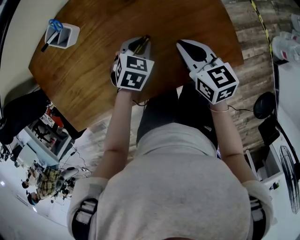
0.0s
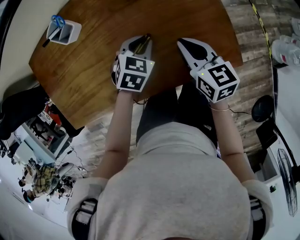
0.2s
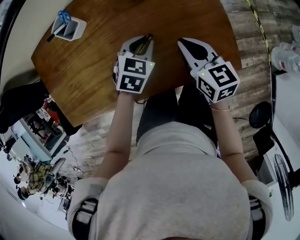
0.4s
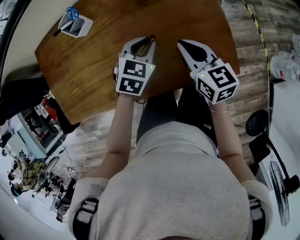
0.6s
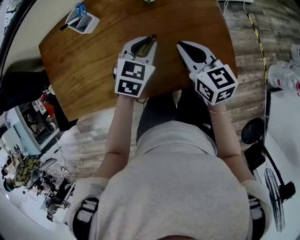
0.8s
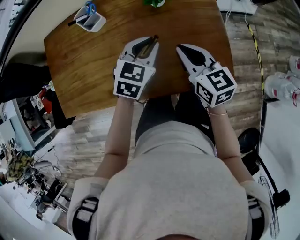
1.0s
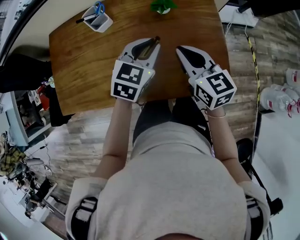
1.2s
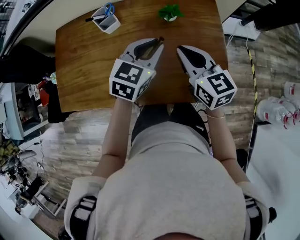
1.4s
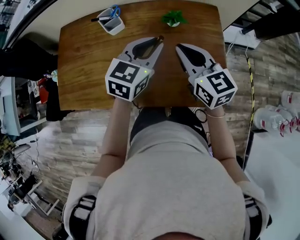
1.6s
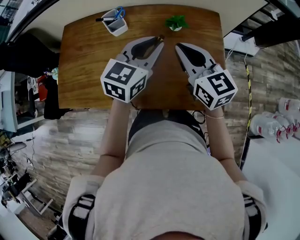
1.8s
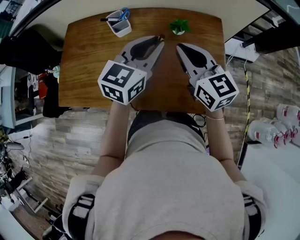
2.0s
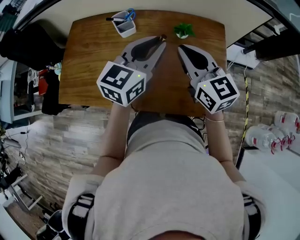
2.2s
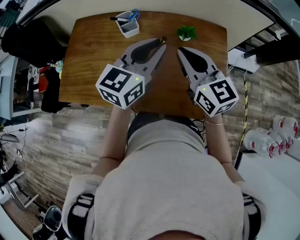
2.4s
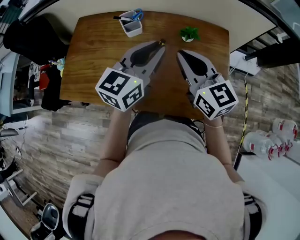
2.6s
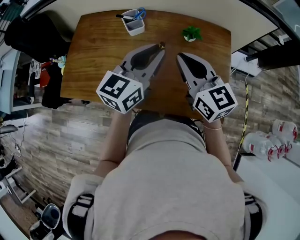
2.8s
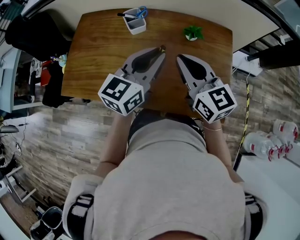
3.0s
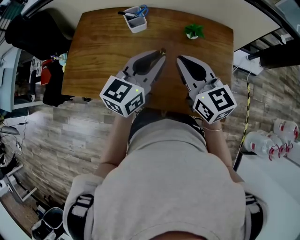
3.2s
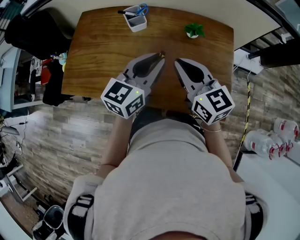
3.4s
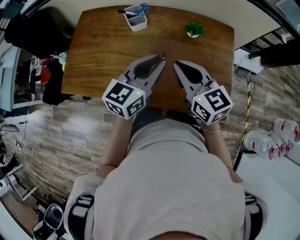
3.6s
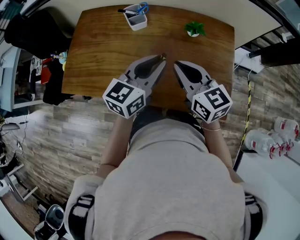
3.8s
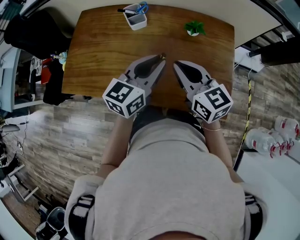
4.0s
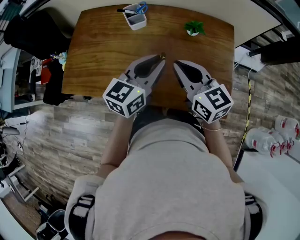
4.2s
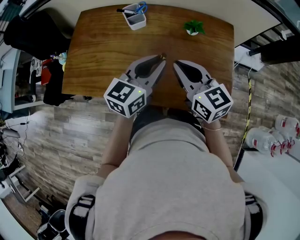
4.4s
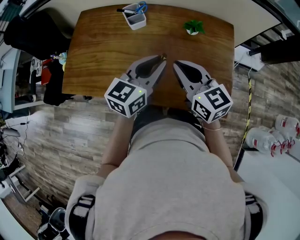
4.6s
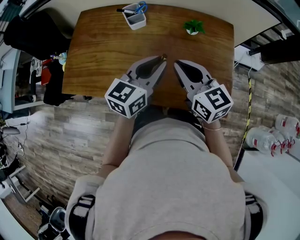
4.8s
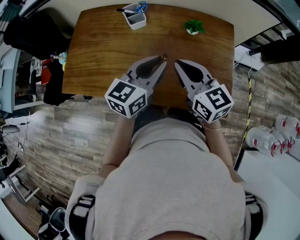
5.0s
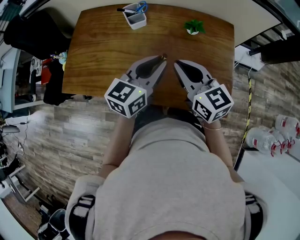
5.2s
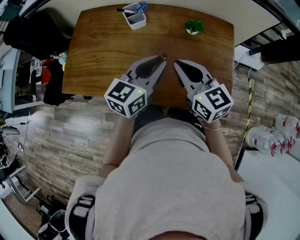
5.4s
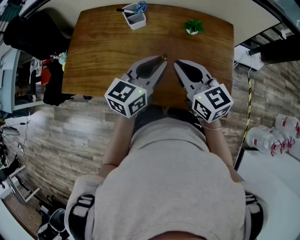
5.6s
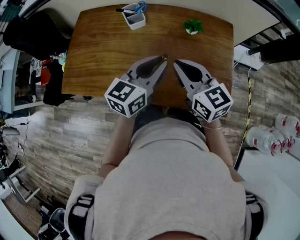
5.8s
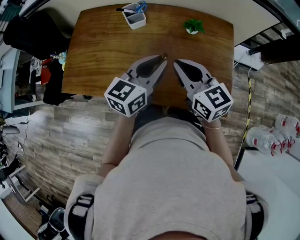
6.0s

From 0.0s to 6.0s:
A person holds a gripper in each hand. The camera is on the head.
From 0.0s to 1.6s: The left gripper is displaced upward by about 25 cm, and points its fingers about 40 degrees further upward; the right gripper moves upward and to the left, approximately 20 cm, and turns by roughly 30 degrees.
From 1.6s to 3.0s: The right gripper heads to the left, covering some 5 cm, while the left gripper shifts roughly 10 cm to the left and upward, and turns by about 20 degrees.
From 3.0s to 4.4s: The left gripper shifts by some 5 cm.
From 4.4s to 6.0s: Neither gripper changes place.

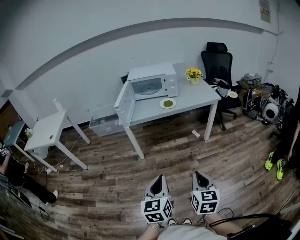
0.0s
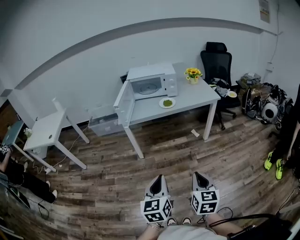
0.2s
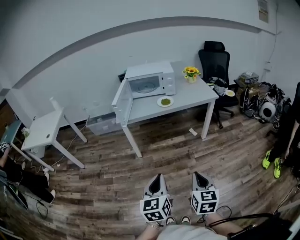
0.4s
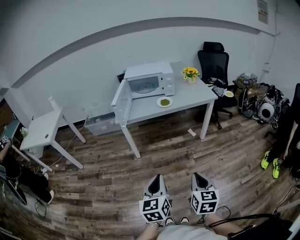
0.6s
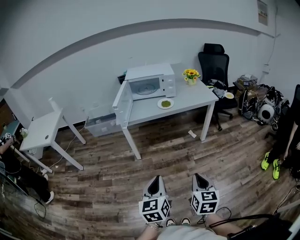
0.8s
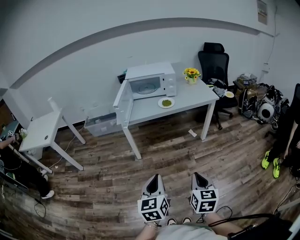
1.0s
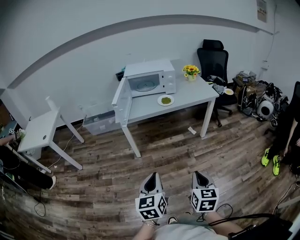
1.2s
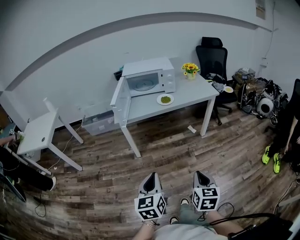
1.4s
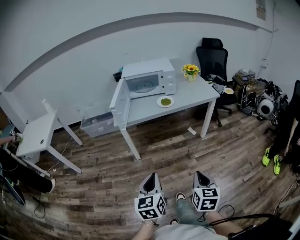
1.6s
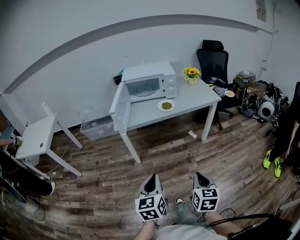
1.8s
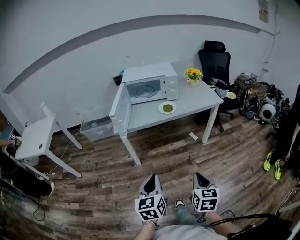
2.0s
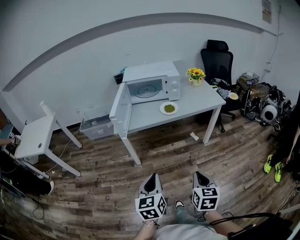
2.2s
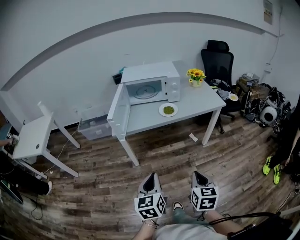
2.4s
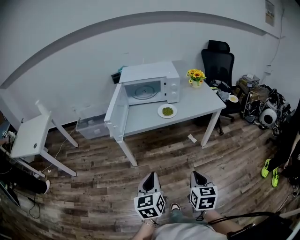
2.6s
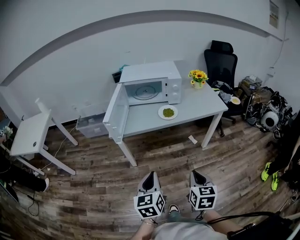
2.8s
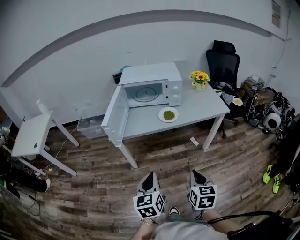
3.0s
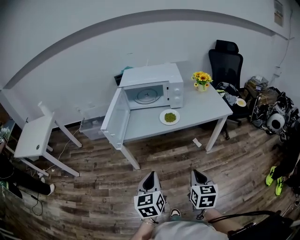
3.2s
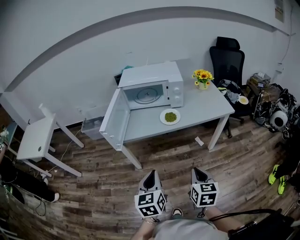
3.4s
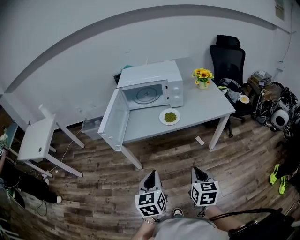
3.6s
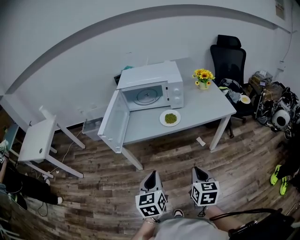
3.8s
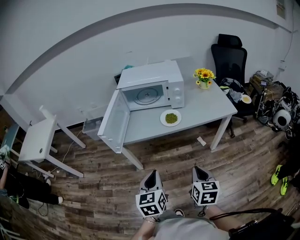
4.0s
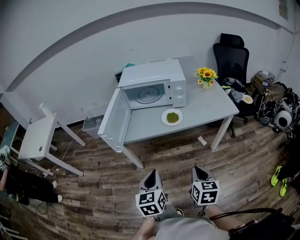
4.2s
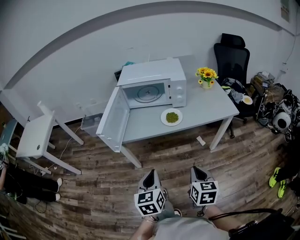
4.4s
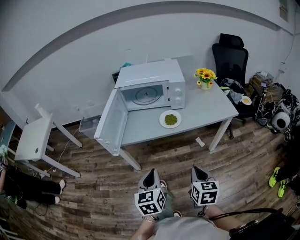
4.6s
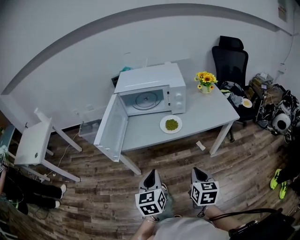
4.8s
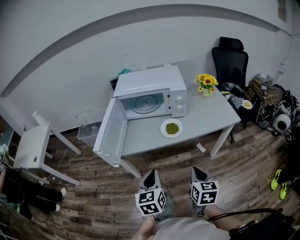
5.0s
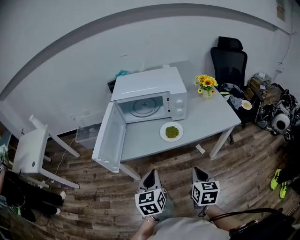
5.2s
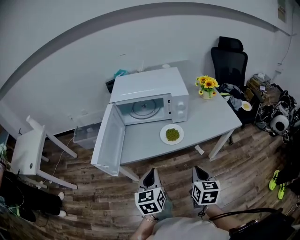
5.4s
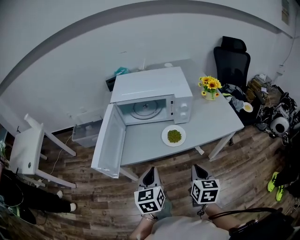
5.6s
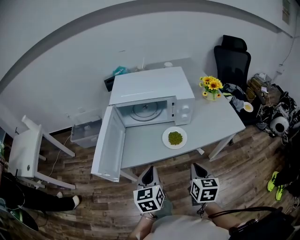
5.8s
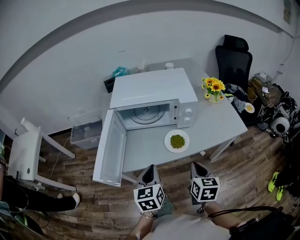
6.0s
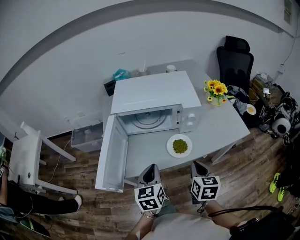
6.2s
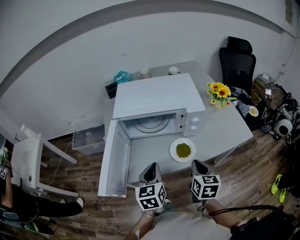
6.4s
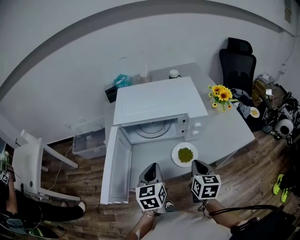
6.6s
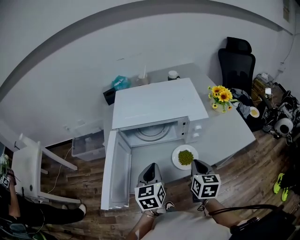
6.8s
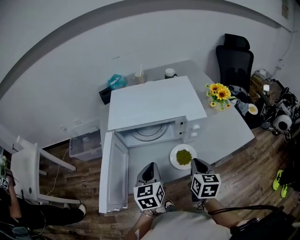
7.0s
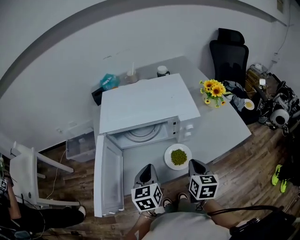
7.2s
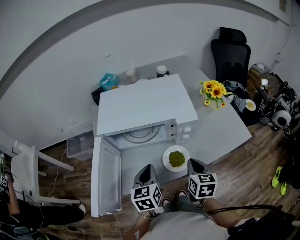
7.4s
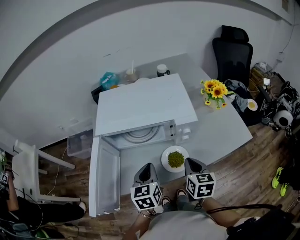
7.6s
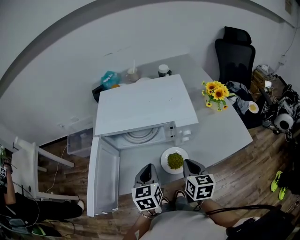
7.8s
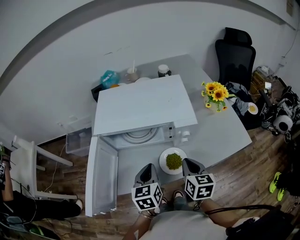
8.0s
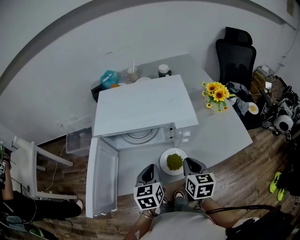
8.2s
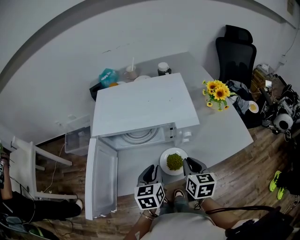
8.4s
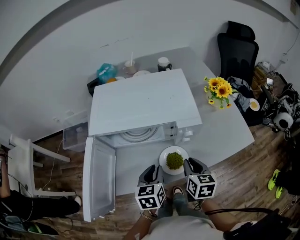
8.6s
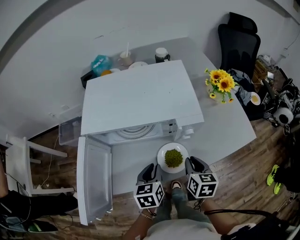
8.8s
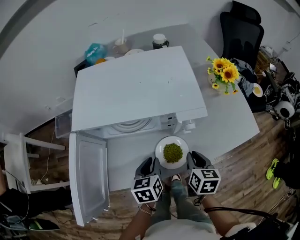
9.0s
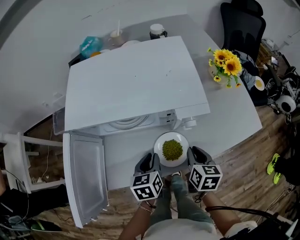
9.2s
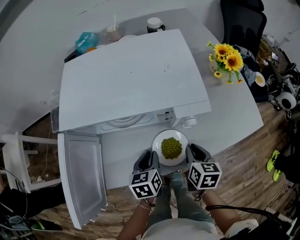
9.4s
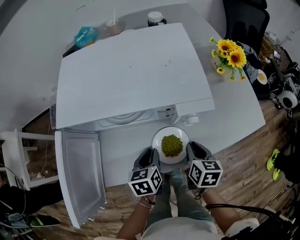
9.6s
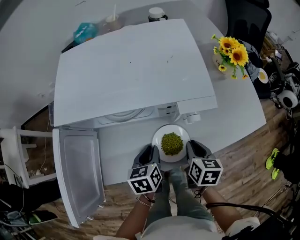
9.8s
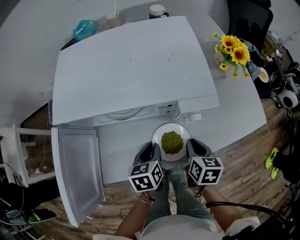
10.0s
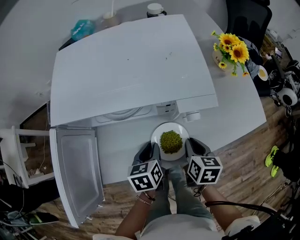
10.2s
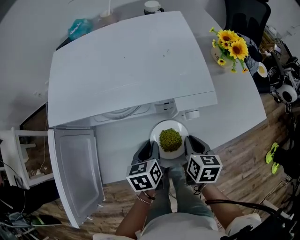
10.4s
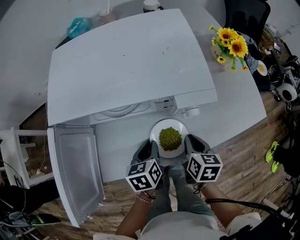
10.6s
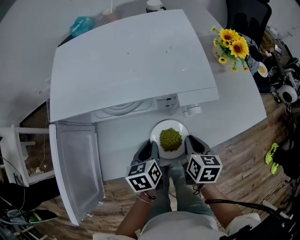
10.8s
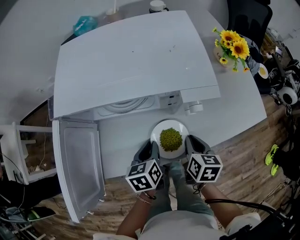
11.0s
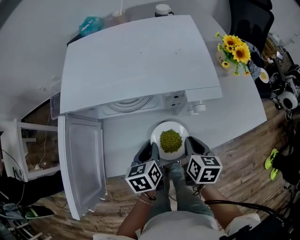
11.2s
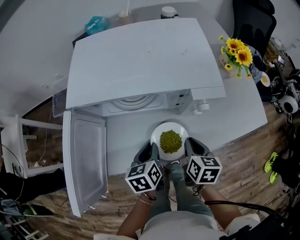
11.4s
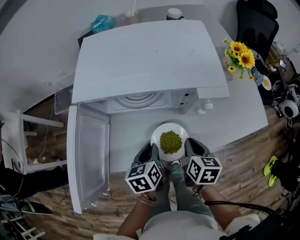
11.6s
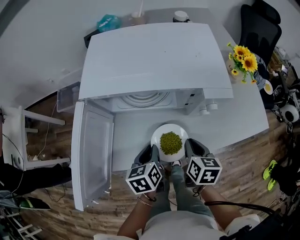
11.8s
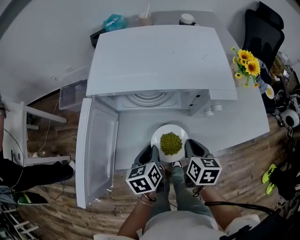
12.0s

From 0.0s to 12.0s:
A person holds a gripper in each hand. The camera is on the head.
From 0.0s to 1.6s: The left gripper moves to the left and forward, roughly 10 cm, while the right gripper travels forward by some 5 cm.
From 1.6s to 3.0s: The grippers both shift forward by some 20 cm.
From 3.0s to 4.4s: Both grippers travel together forward, roughly 10 cm.
From 4.4s to 6.0s: Both grippers move forward, roughly 20 cm.
From 6.0s to 7.6s: Both grippers move forward, some 15 cm.
From 7.6s to 9.0s: The two grippers go approximately 10 cm downward.
From 9.0s to 10.4s: Both grippers move downward, some 5 cm.
From 10.4s to 12.0s: The right gripper goes about 10 cm to the left, while the left gripper travels to the left and backward by roughly 10 cm.

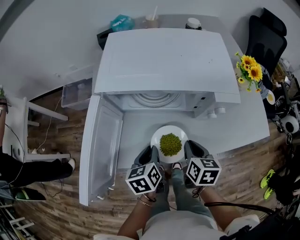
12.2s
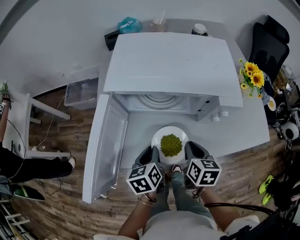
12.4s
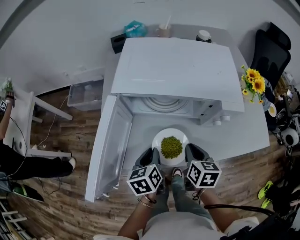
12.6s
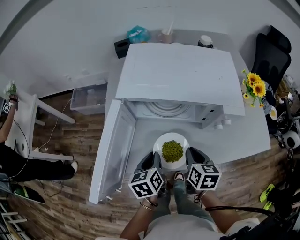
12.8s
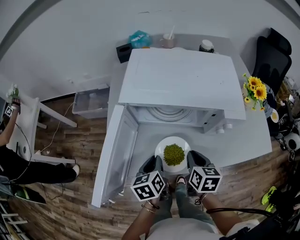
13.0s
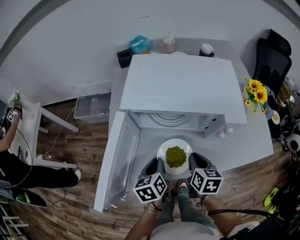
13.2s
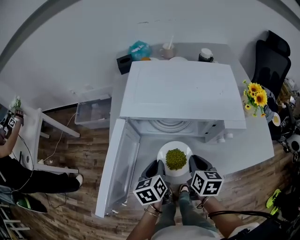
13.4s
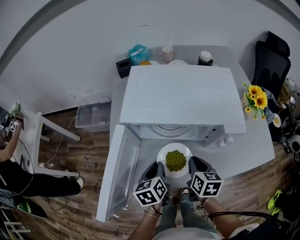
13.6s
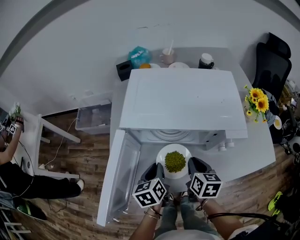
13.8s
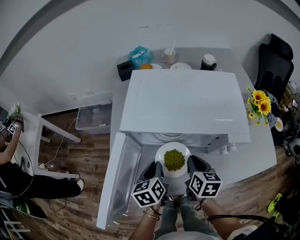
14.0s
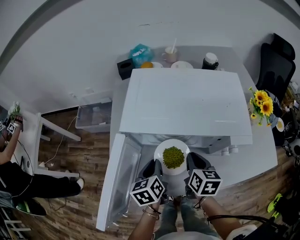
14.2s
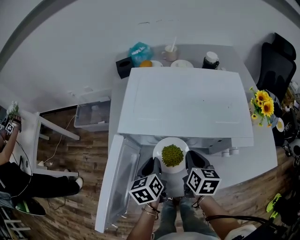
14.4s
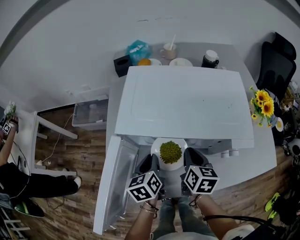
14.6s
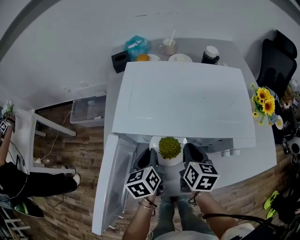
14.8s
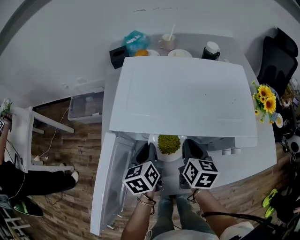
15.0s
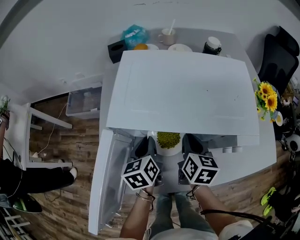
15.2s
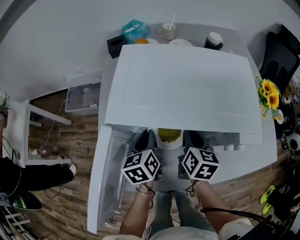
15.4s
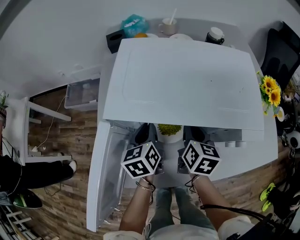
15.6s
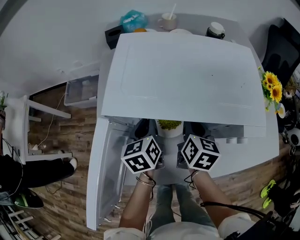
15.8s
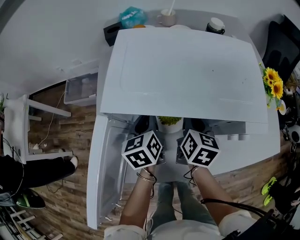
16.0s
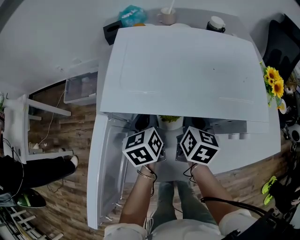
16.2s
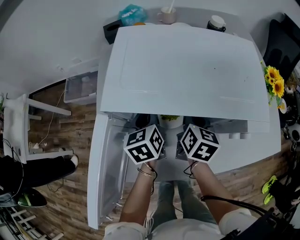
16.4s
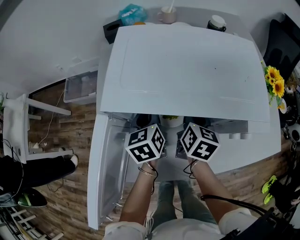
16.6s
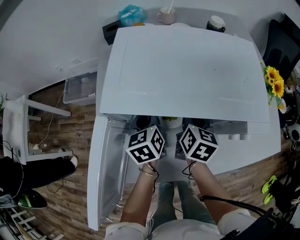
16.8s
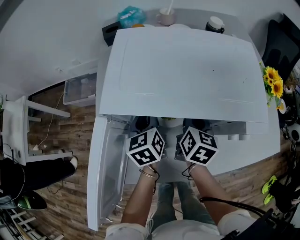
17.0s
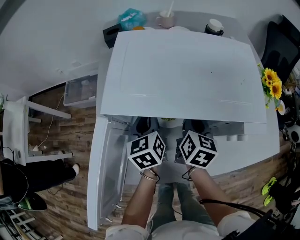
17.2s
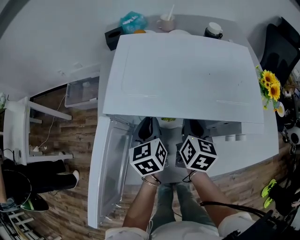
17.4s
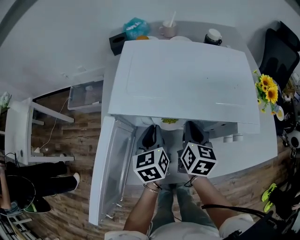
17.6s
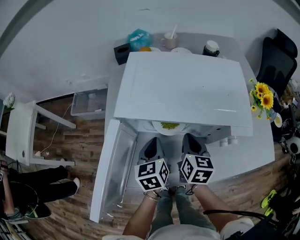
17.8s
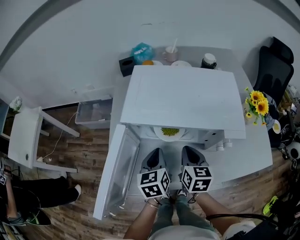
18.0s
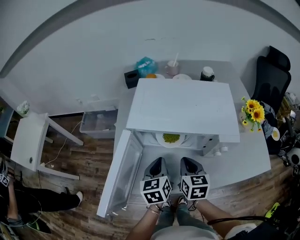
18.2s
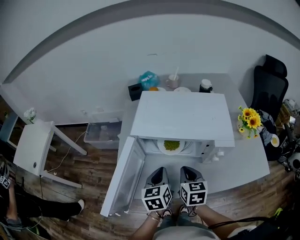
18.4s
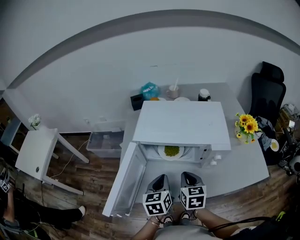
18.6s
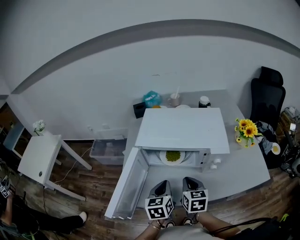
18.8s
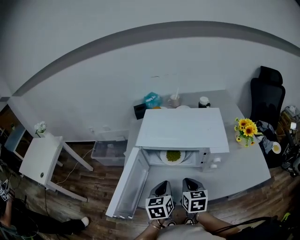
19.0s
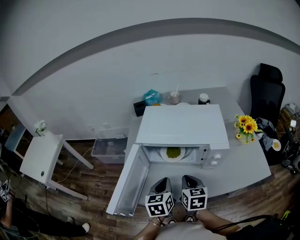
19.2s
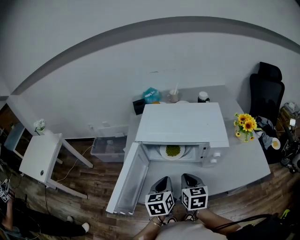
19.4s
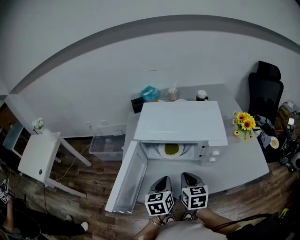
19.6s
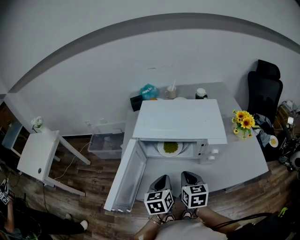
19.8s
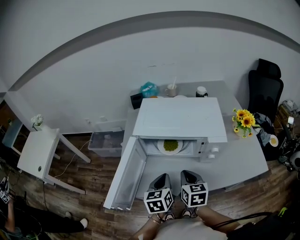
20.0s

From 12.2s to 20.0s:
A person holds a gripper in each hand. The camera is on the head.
From 12.2s to 13.8s: Both grippers move forward, about 5 cm.
From 13.8s to 15.4s: Both grippers move forward, about 10 cm.
From 15.4s to 16.8s: The grippers stay close to where they were, moving slightly.
From 16.8s to 18.4s: The two grippers go approximately 20 cm backward and upward. The right gripper rotates approximately 20 degrees.
From 18.4s to 20.0s: The left gripper shifts by approximately 5 cm.
